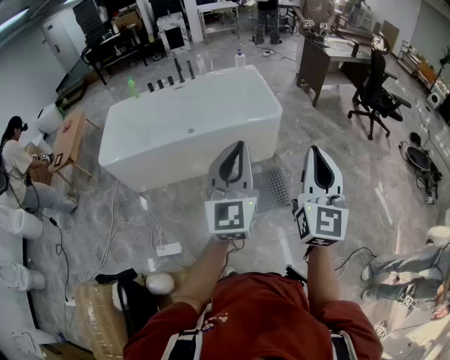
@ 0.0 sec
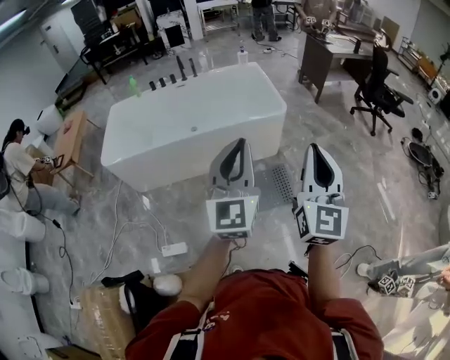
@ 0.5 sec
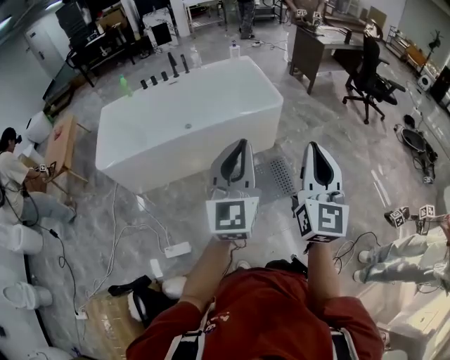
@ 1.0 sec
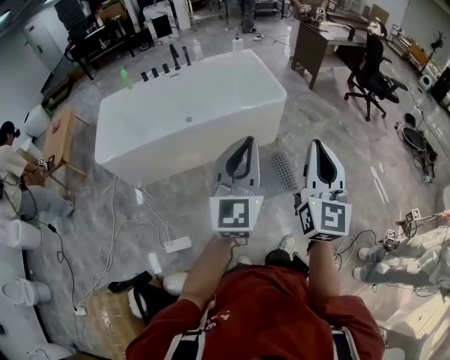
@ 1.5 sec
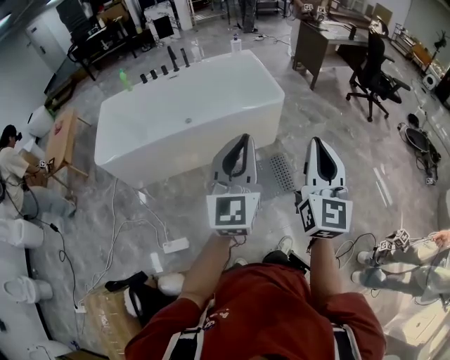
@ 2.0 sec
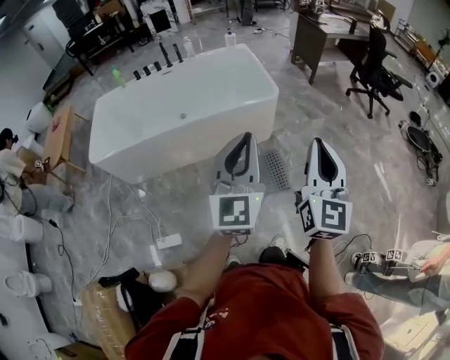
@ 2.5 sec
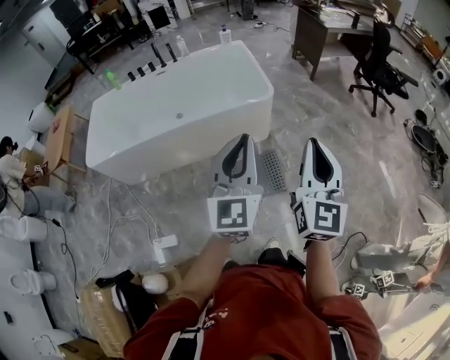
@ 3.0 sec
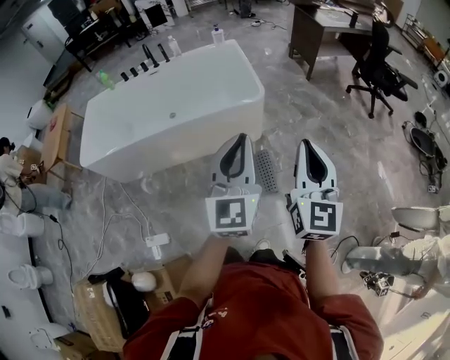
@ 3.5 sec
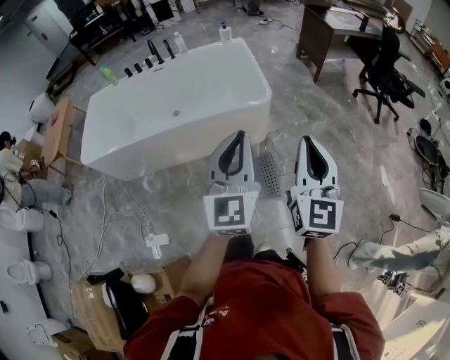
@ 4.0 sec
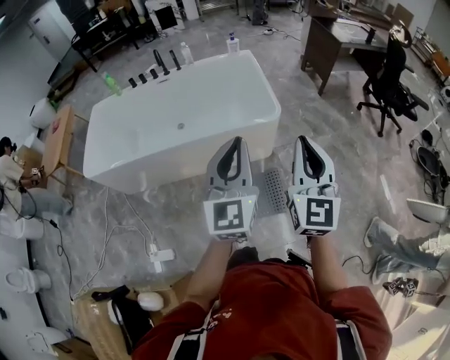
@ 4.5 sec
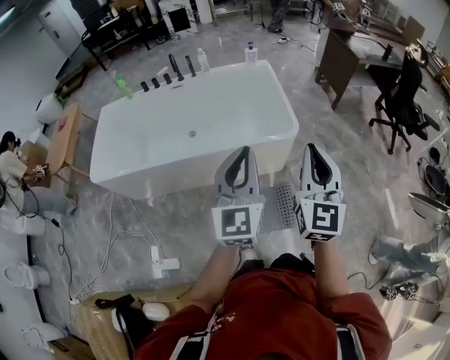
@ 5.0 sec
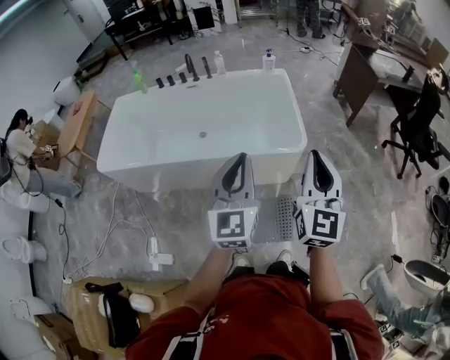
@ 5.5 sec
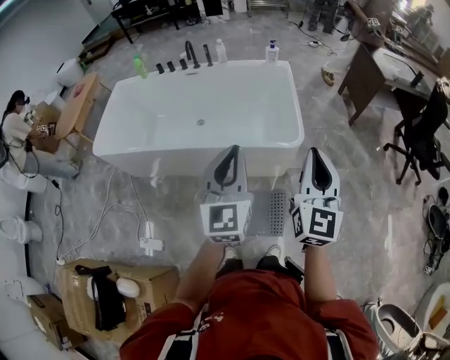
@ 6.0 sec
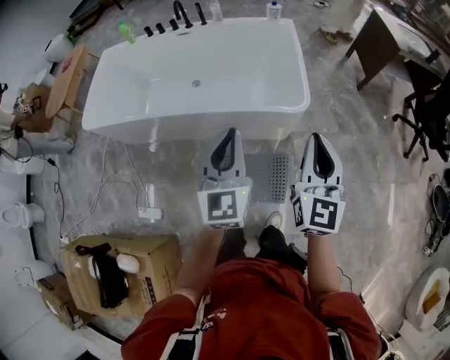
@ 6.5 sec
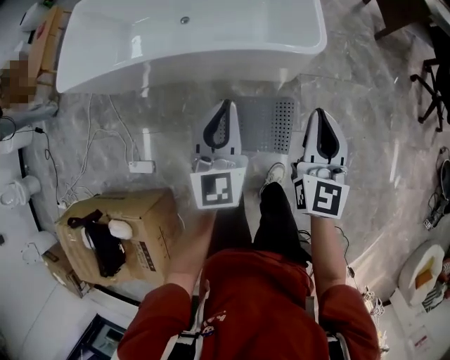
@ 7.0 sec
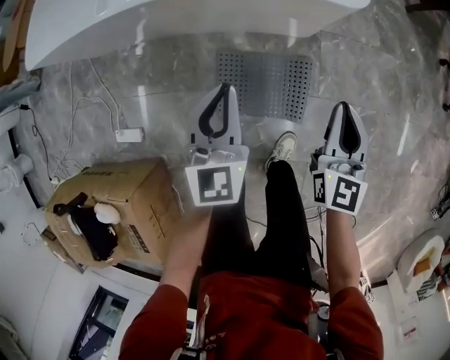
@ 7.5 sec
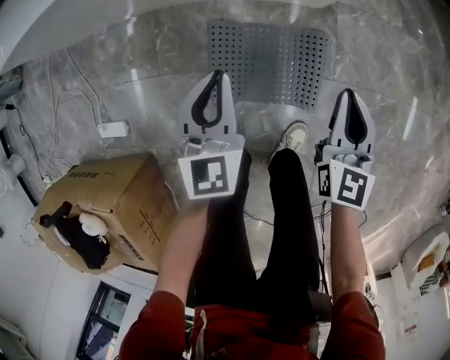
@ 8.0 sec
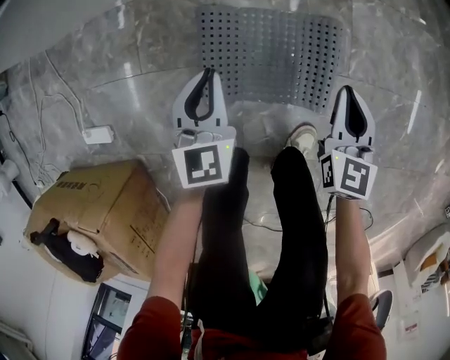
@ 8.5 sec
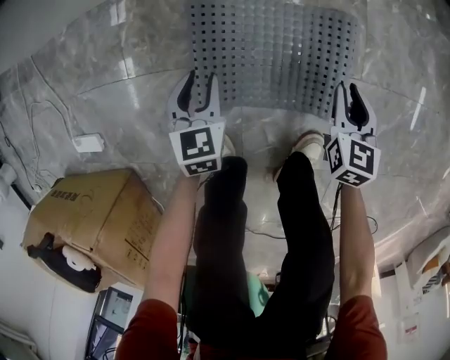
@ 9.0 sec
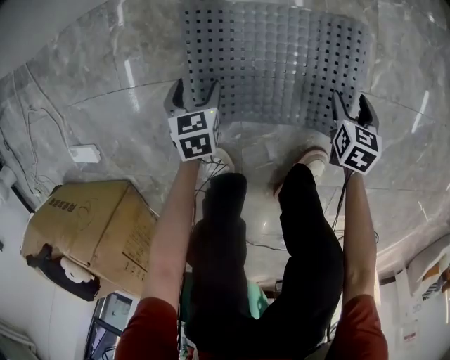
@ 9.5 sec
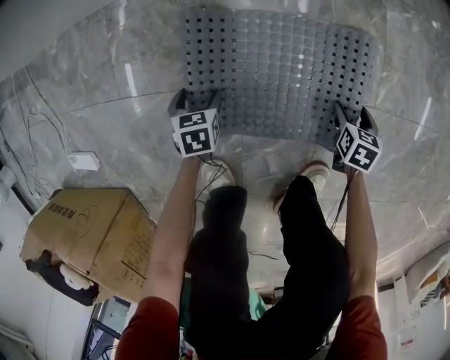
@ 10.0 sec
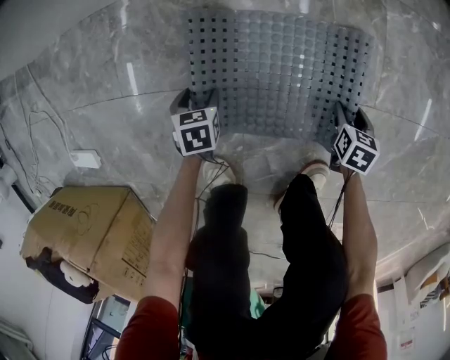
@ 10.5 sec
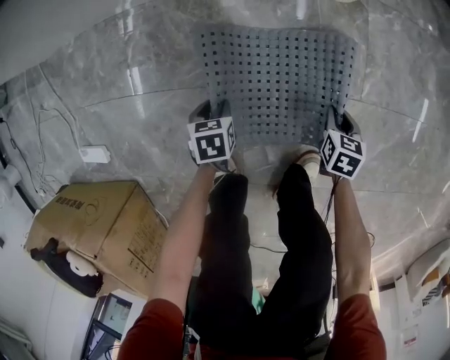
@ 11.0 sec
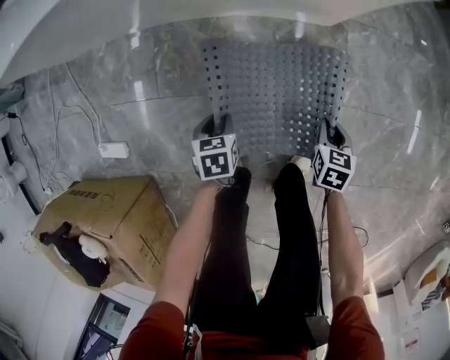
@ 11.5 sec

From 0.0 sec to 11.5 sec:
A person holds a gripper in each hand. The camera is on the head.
From 0.0 sec to 2.0 sec: The right gripper moves to the left, roughly 5 cm.
From 2.0 sec to 4.0 sec: The grippers both shift forward and to the right by about 25 cm.
From 4.0 sec to 6.0 sec: The right gripper moves forward, approximately 25 cm, while the left gripper heads forward and to the left, covering some 20 cm.
From 6.0 sec to 7.5 sec: The two grippers go about 40 cm downward. The right gripper swivels roughly 20 degrees.
From 7.5 sec to 9.5 sec: The grippers both shift downward by roughly 60 cm. The right gripper tips its fingers downward by about 40 degrees, and opens its fingers. The left gripper angles its fingers downward, by approximately 40 degrees, and opens its fingers.
From 9.5 sec to 11.5 sec: Both grippers move upward, about 20 cm. The right gripper closes. Meanwhile the left gripper closes its fingers.

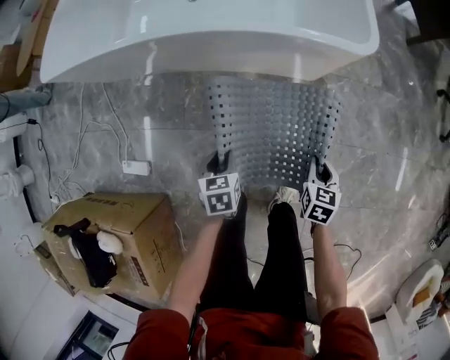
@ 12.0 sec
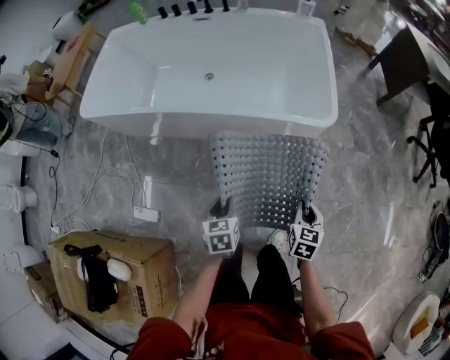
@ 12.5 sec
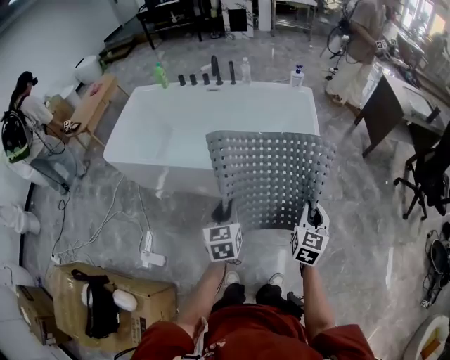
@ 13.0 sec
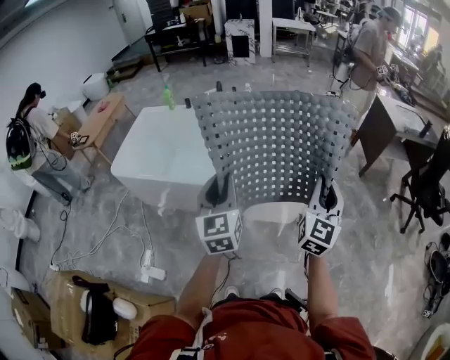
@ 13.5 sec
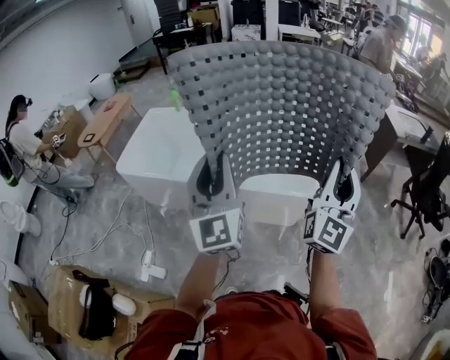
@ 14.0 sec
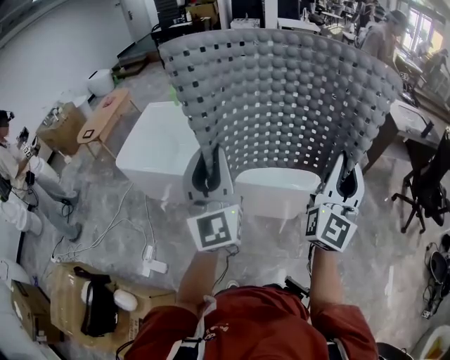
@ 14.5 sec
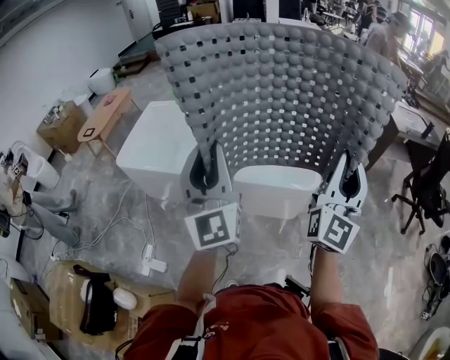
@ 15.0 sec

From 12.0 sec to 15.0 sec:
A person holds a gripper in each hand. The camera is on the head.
From 12.0 sec to 13.5 sec: The two grippers go approximately 60 cm upward. The right gripper angles its fingers upward, by some 60 degrees. Meanwhile the left gripper angles its fingers upward, by roughly 60 degrees.
From 13.5 sec to 15.0 sec: The two grippers go about 15 cm upward and backward. The right gripper rotates approximately 20 degrees. Meanwhile the left gripper turns by roughly 30 degrees.

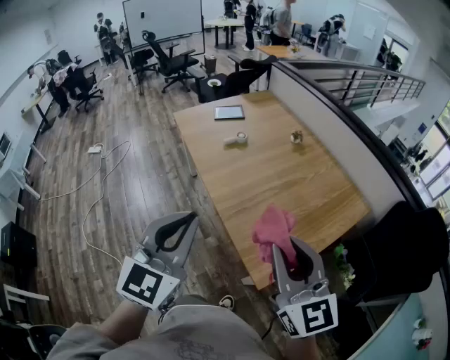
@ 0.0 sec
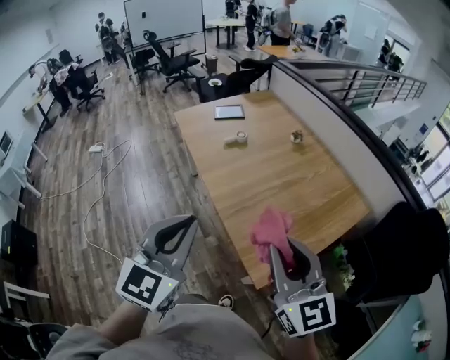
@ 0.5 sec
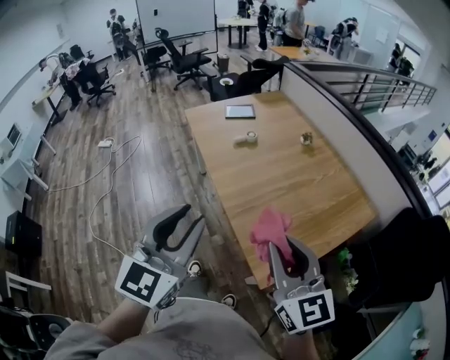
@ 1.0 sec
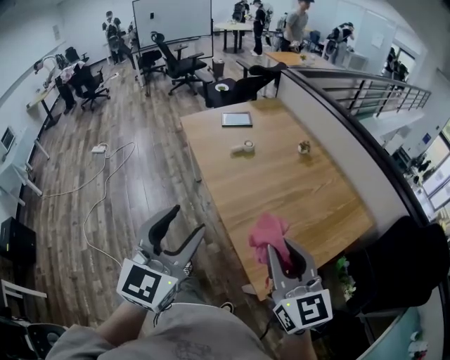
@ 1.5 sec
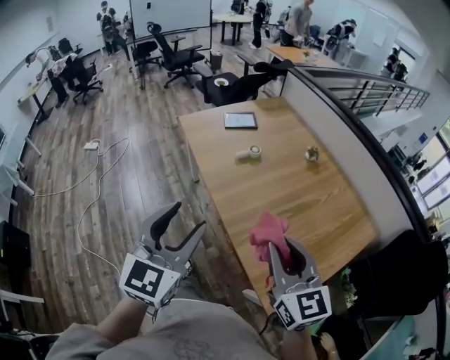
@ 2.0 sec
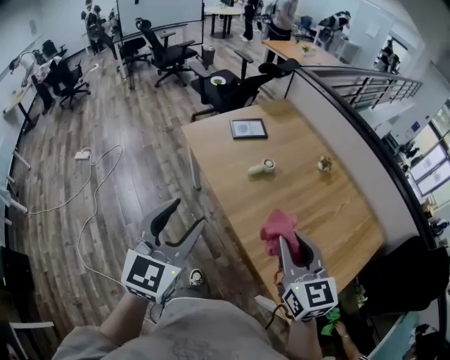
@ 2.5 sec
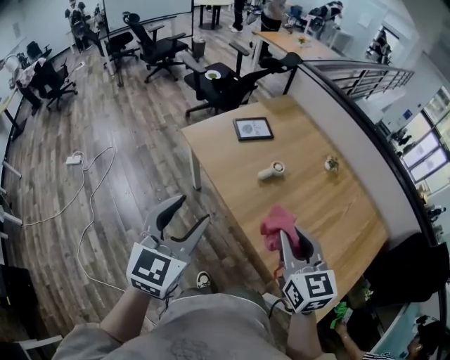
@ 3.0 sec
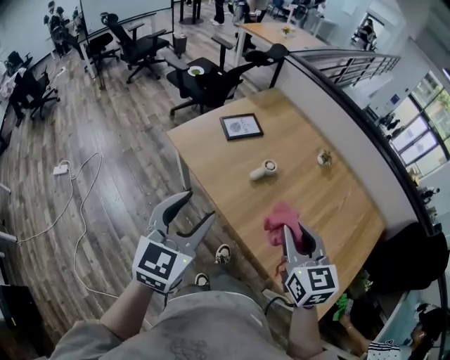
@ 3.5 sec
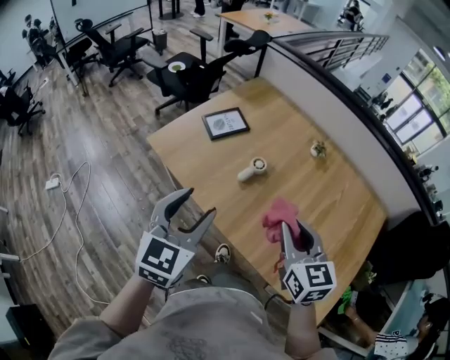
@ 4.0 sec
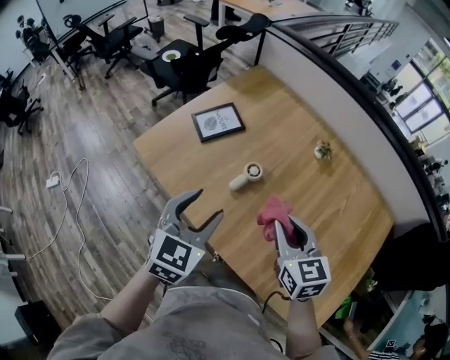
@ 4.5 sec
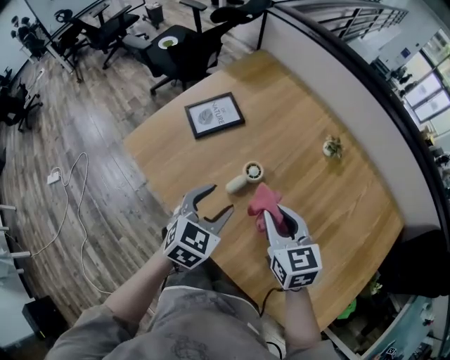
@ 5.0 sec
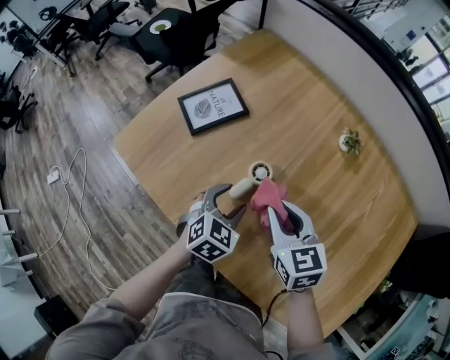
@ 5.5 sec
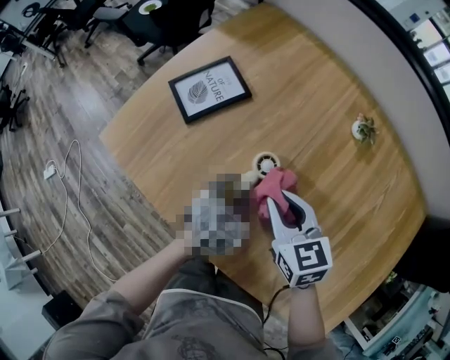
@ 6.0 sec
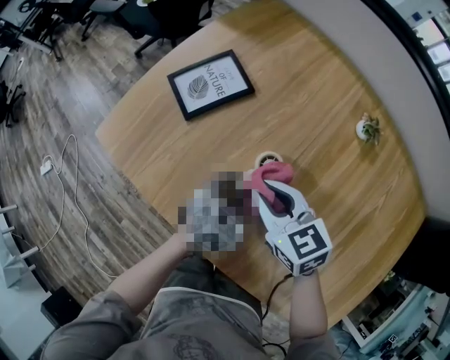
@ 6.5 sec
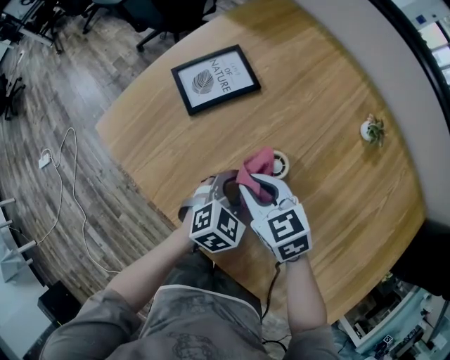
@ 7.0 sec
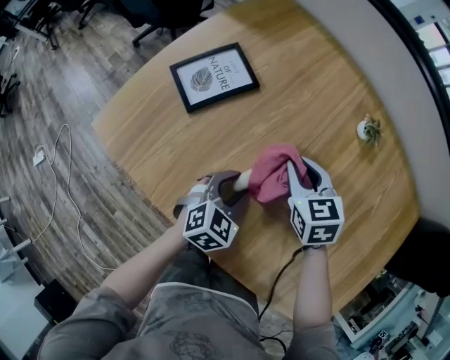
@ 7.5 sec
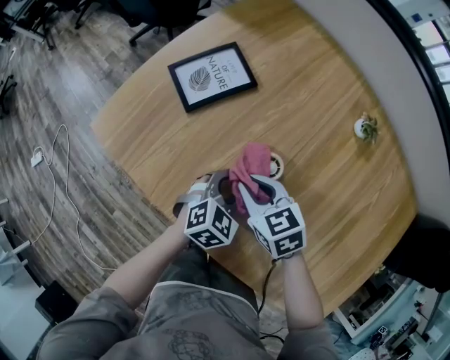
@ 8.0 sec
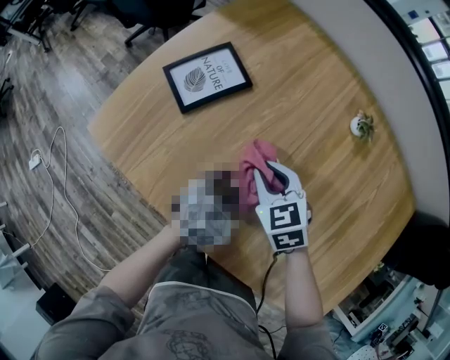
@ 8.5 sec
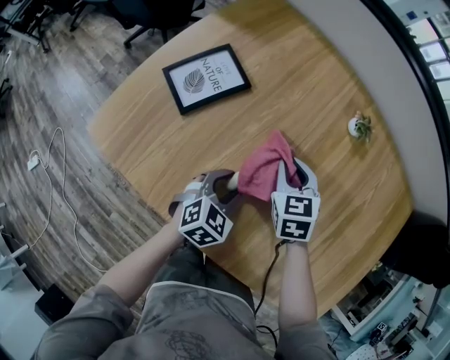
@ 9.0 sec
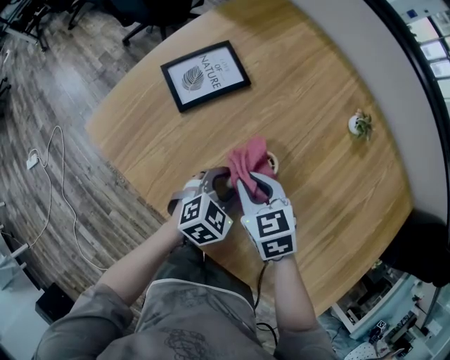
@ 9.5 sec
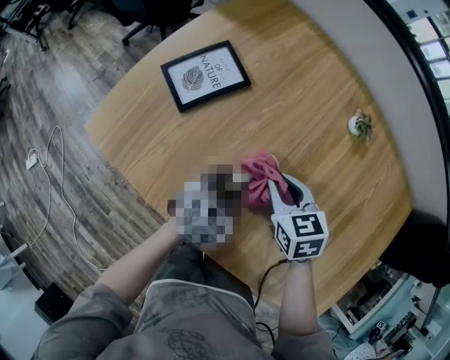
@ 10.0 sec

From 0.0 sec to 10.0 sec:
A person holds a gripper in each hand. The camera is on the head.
From 0.0 sec to 2.0 sec: Both grippers travel together forward and to the left, some 15 cm. The left gripper opens.
From 2.0 sec to 4.0 sec: The grippers both shift forward and to the left by about 35 cm. The right gripper turns by approximately 30 degrees. Meanwhile the left gripper changes its angle by approximately 20 degrees.
From 4.0 sec to 6.0 sec: The left gripper moves downward and forward, some 40 cm, and points its fingers roughly 30 degrees further downward, while the right gripper goes roughly 35 cm forward and downward.
From 6.0 sec to 8.0 sec: The right gripper goes left and right, approximately 10 cm each way, reversing 2 times.
From 8.0 sec to 10.0 sec: The right gripper moves left and right over approximately 10 cm, changing direction 2 times.

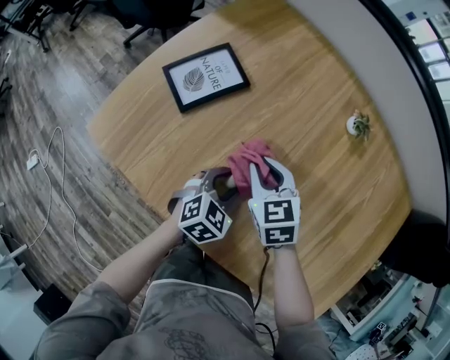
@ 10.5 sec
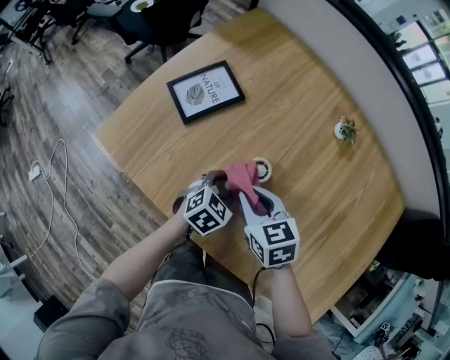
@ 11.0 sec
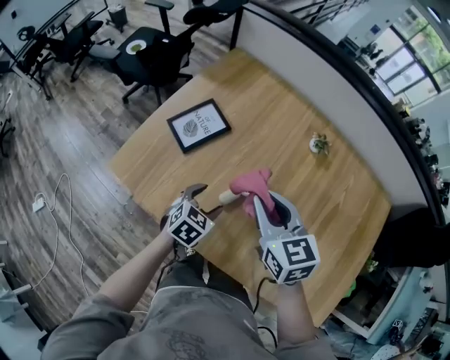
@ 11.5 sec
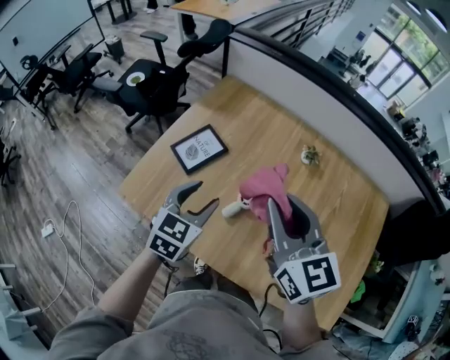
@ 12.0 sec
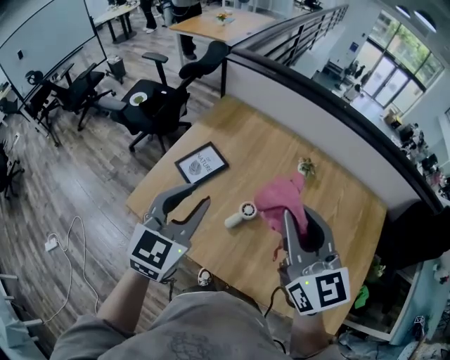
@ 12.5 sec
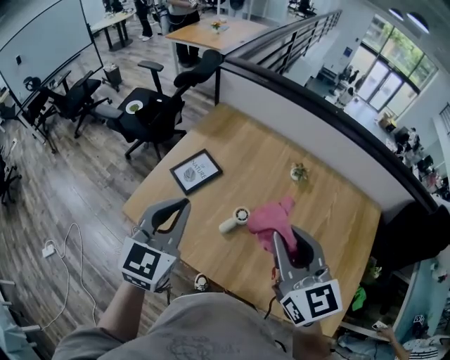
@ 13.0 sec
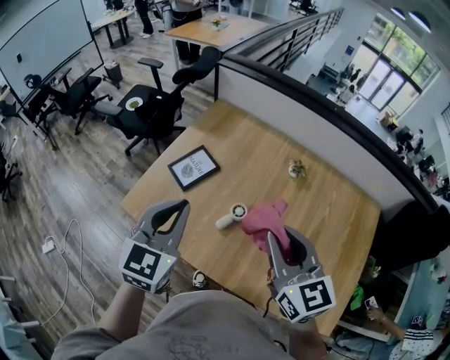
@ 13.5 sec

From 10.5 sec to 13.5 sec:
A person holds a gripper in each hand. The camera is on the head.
From 10.5 sec to 12.0 sec: The grippers both shift upward by roughly 30 cm. The right gripper tips its fingers upward by some 40 degrees.
From 12.0 sec to 13.5 sec: The right gripper heads backward, covering roughly 5 cm. The left gripper heads upward, covering about 15 cm, and closes up.
